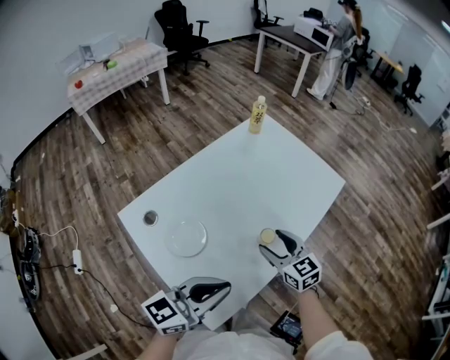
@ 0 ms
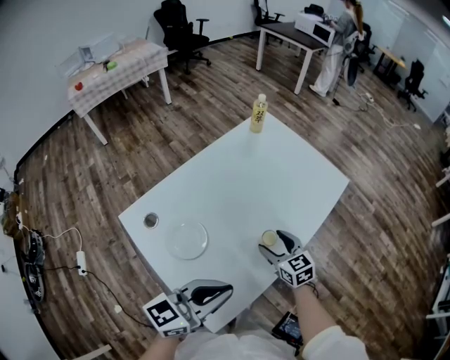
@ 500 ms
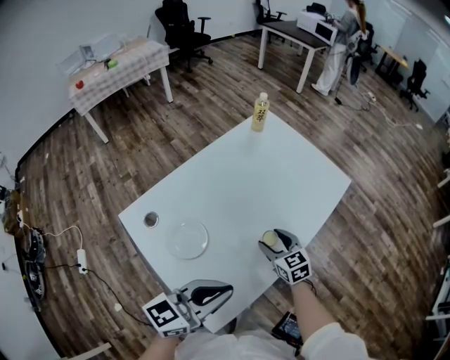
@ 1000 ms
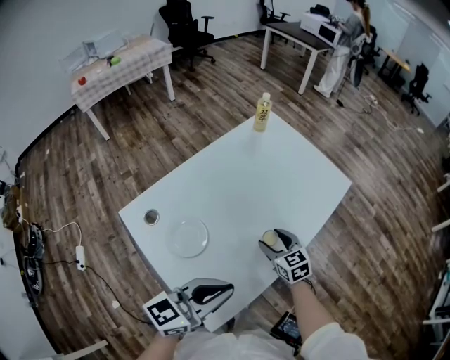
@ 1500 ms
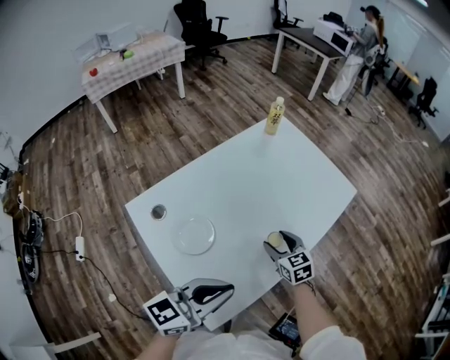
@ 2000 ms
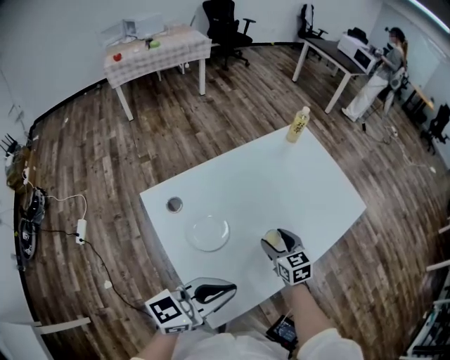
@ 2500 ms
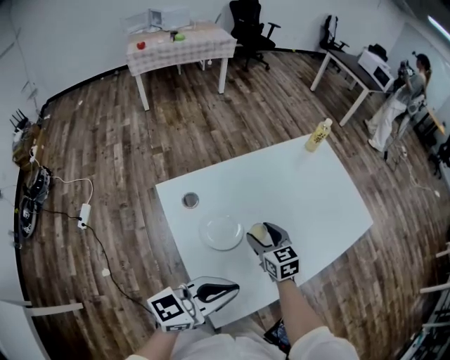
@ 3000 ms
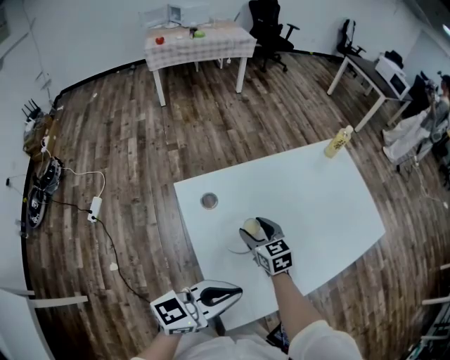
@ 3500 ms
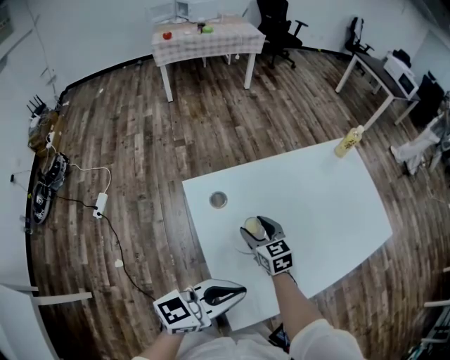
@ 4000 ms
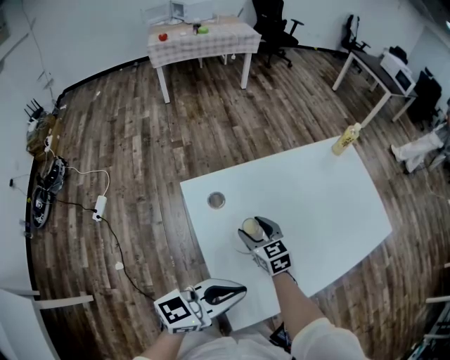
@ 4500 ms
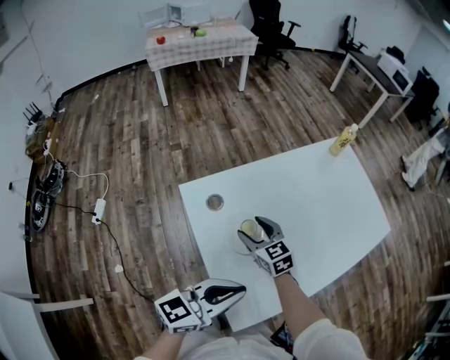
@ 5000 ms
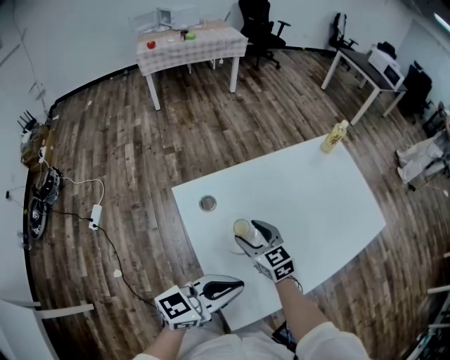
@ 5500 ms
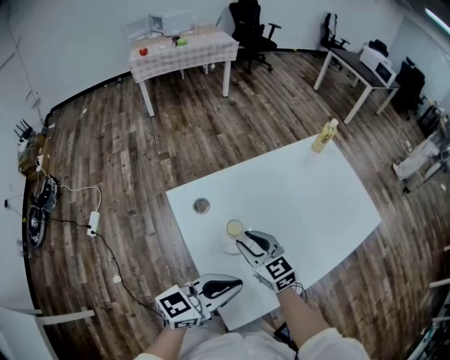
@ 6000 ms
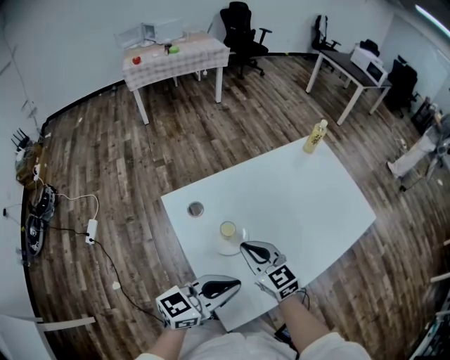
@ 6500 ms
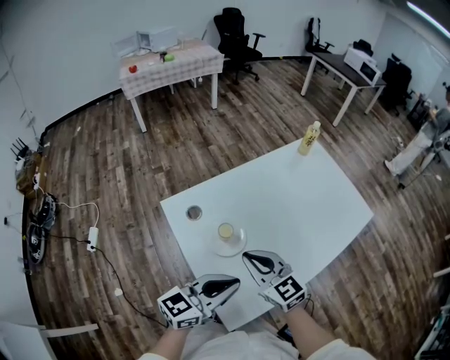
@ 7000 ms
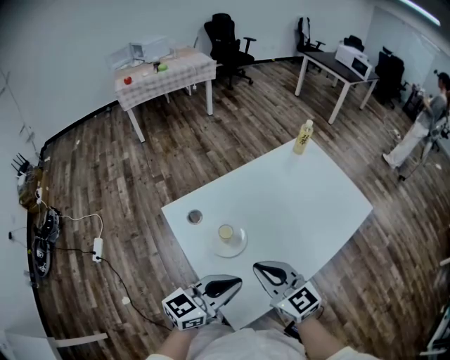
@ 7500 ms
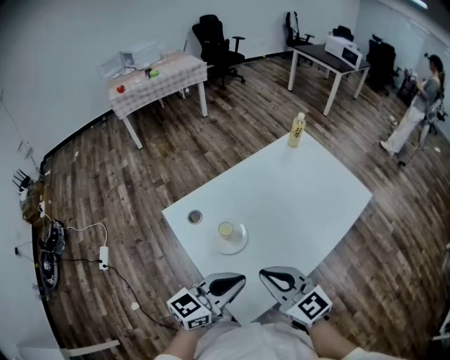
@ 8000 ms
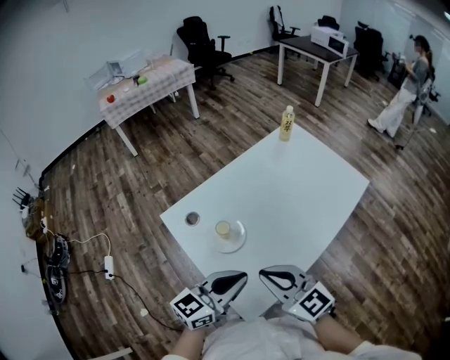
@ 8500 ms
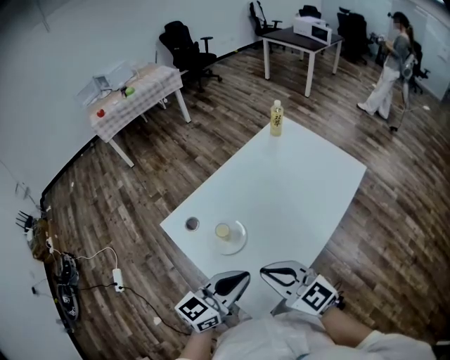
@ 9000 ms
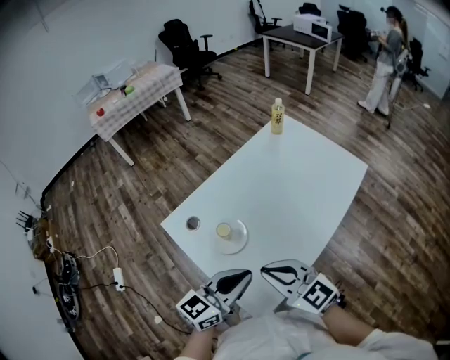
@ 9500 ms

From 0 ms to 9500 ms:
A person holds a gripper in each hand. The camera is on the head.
From 0 ms to 2000 ms: The right gripper moves downward, approximately 10 cm.
From 2000 ms to 4000 ms: The right gripper heads to the left, covering some 30 cm, and changes its angle by about 20 degrees, while the left gripper moves to the left, approximately 10 cm.
From 4000 ms to 5500 ms: The grippers make only small movements.
From 5500 ms to 7500 ms: The right gripper heads backward, upward and to the right, covering about 20 cm, and closes its fingers.
From 7500 ms to 9500 ms: The grippers move only a little.

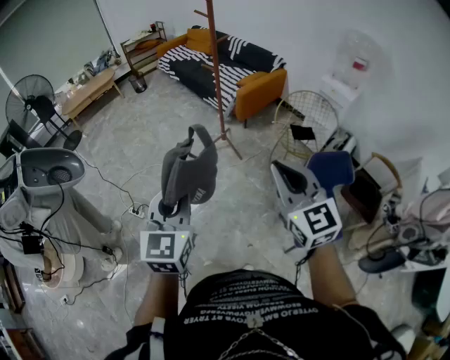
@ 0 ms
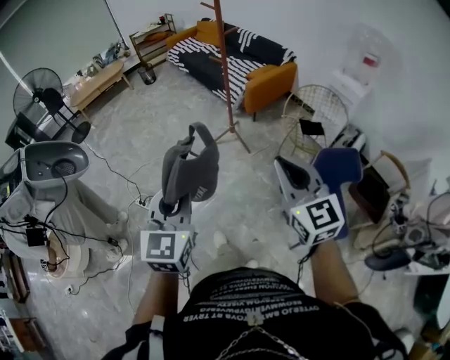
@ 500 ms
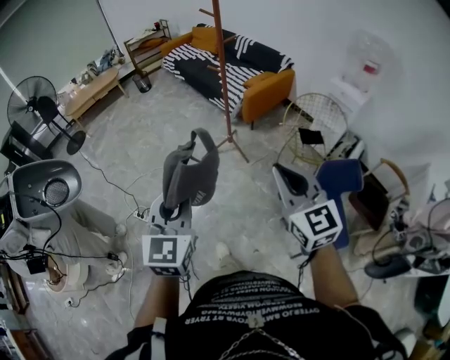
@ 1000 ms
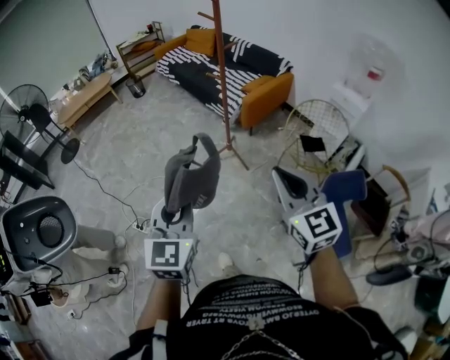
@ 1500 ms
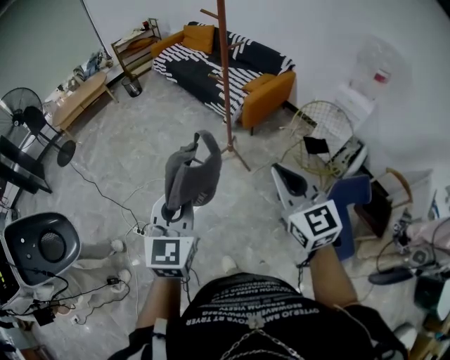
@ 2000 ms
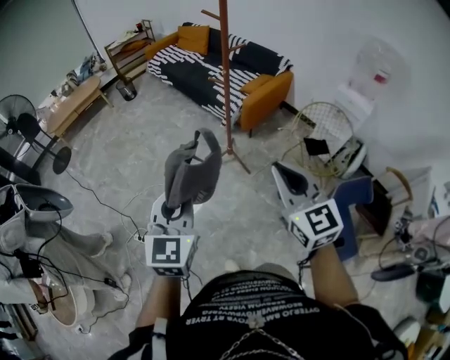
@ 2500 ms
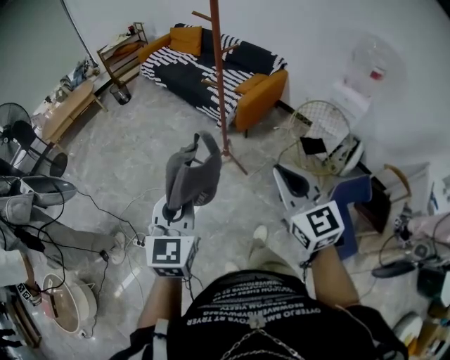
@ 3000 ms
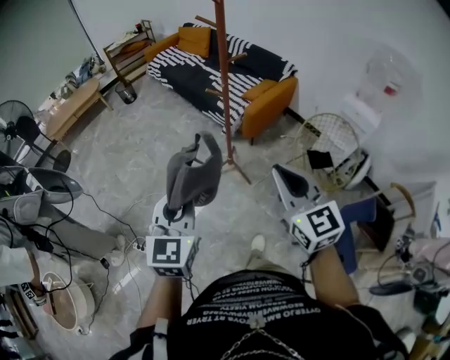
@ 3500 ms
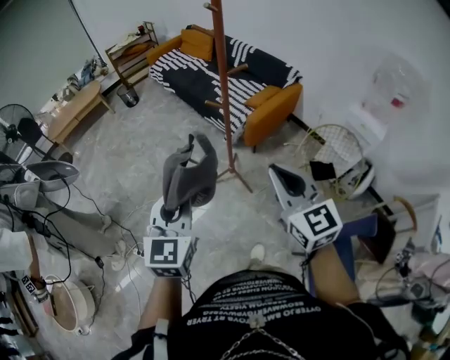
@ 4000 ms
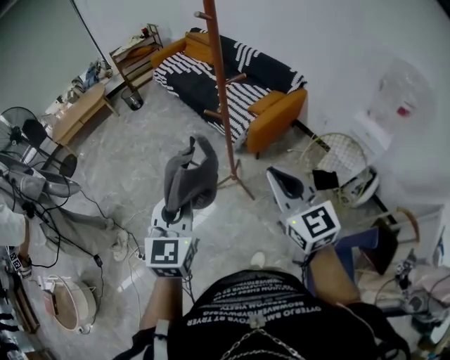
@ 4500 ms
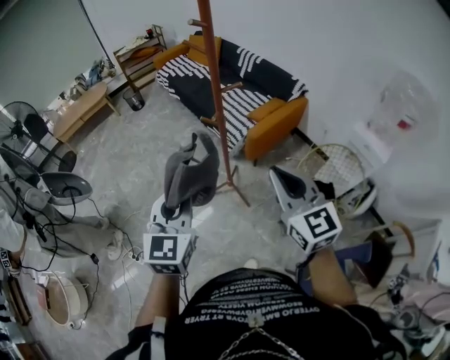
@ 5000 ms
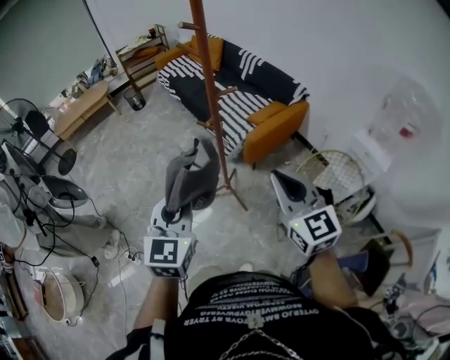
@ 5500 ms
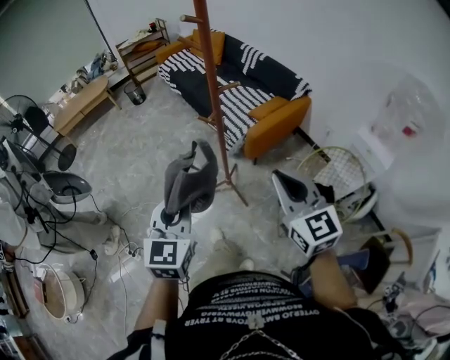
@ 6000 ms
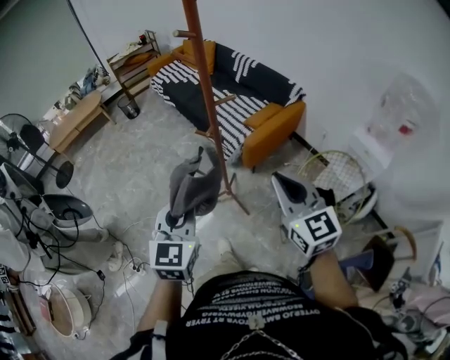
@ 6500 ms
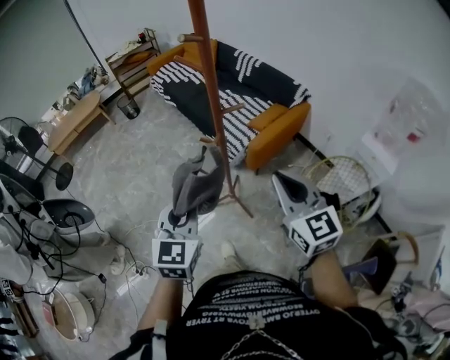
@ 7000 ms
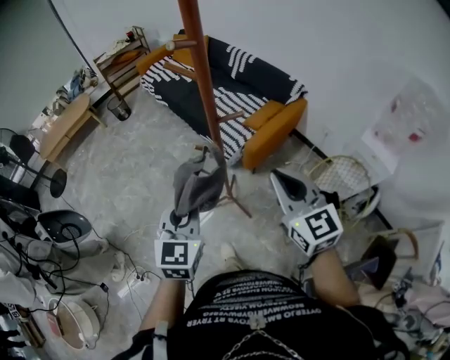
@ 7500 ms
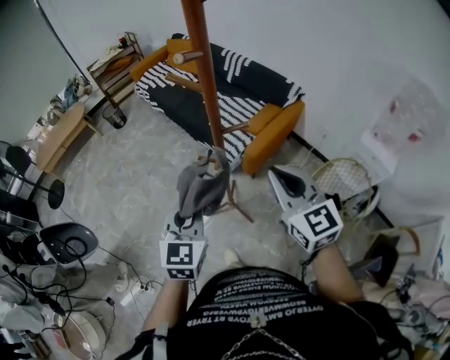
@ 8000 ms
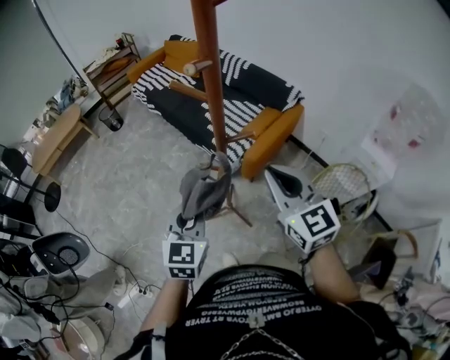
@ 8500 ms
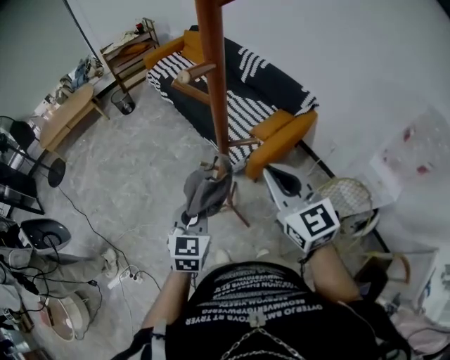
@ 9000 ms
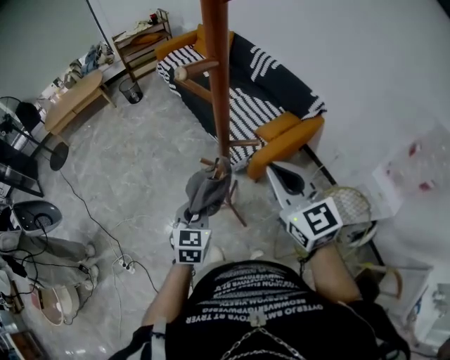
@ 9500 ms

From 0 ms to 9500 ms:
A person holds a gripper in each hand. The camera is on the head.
From 0 ms to 2000 ms: The two grippers go about 25 cm forward.
From 2000 ms to 4000 ms: Both grippers travel together forward, some 25 cm.
From 4000 ms to 5500 ms: The grippers both shift to the right and forward by approximately 15 cm.
From 5500 ms to 7500 ms: Both grippers travel together forward, roughly 15 cm.
From 7500 ms to 9500 ms: The right gripper heads forward, covering roughly 10 cm; the left gripper heads downward and forward, covering about 15 cm.

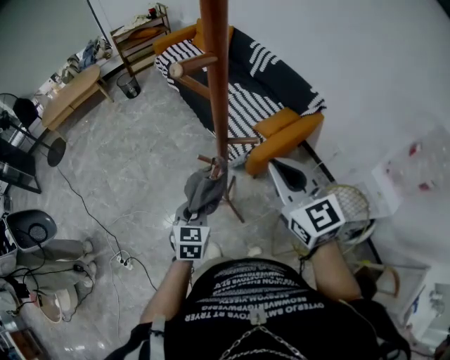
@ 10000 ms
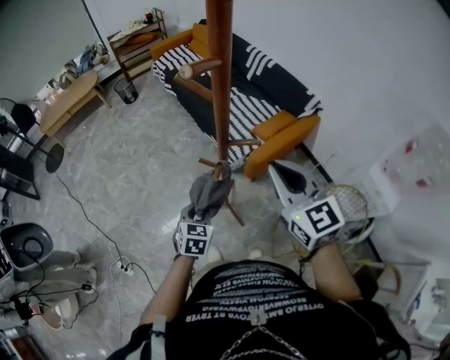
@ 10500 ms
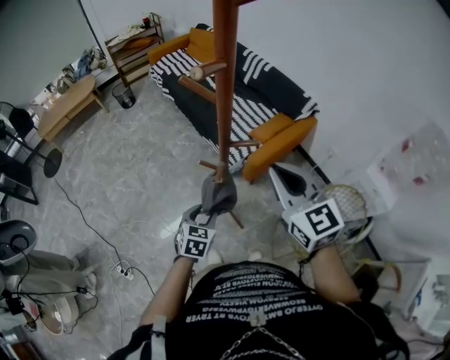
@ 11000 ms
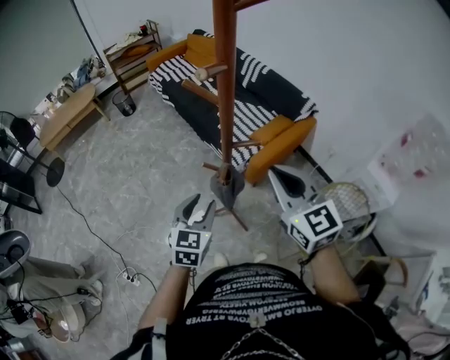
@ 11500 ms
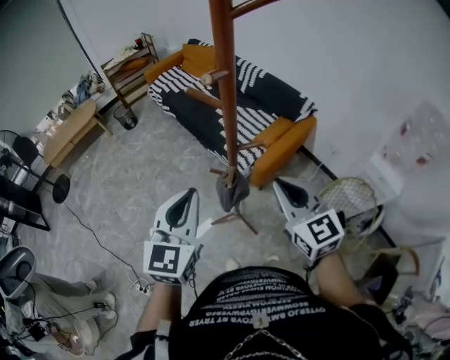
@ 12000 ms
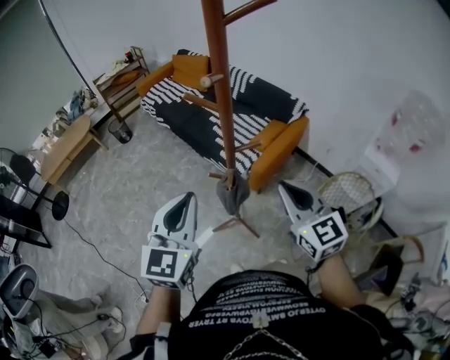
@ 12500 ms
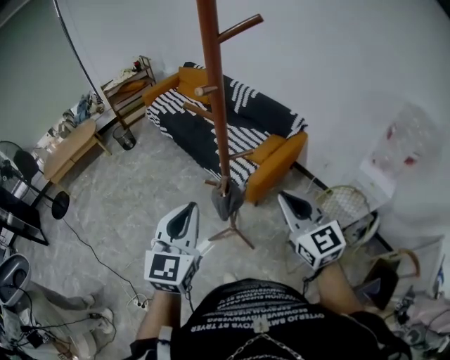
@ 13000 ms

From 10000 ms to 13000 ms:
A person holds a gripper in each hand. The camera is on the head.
From 10000 ms to 11500 ms: The left gripper is displaced upward by roughly 10 cm, and opens.
From 11500 ms to 13000 ms: The left gripper travels upward by roughly 20 cm, and closes up; the right gripper travels backward by about 5 cm.

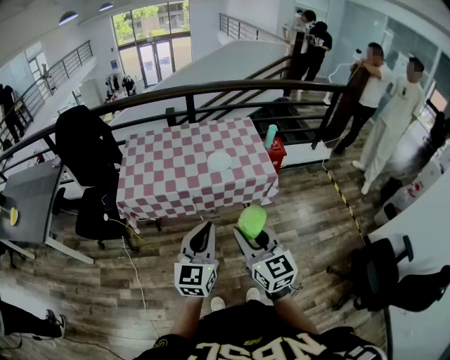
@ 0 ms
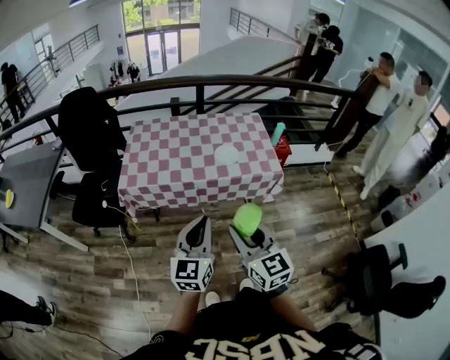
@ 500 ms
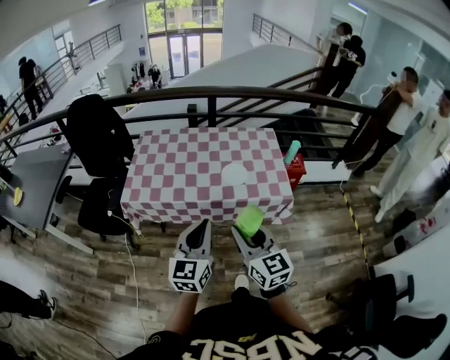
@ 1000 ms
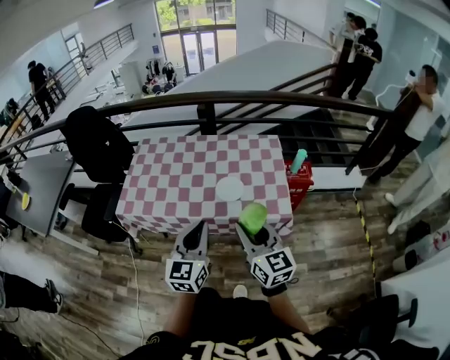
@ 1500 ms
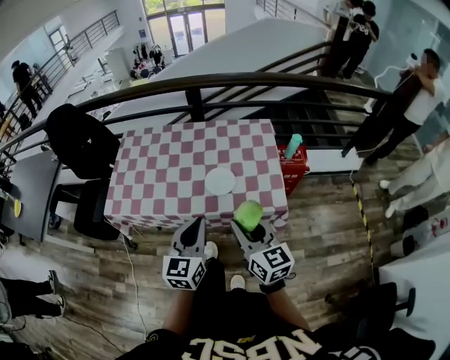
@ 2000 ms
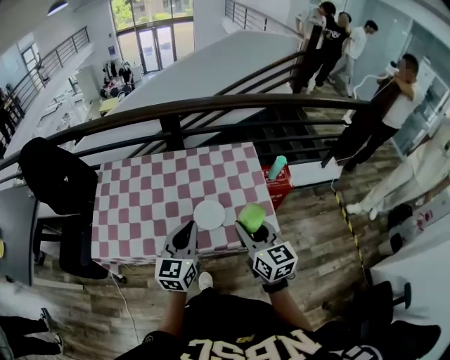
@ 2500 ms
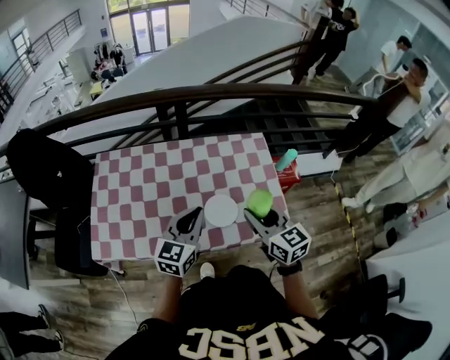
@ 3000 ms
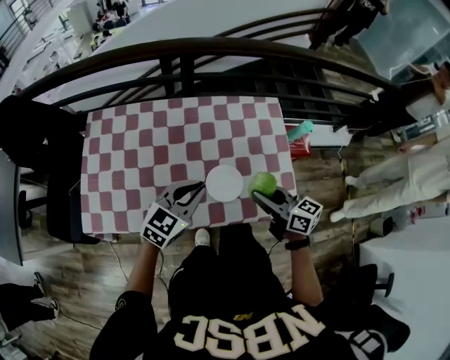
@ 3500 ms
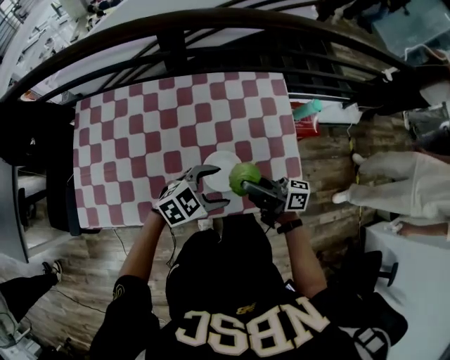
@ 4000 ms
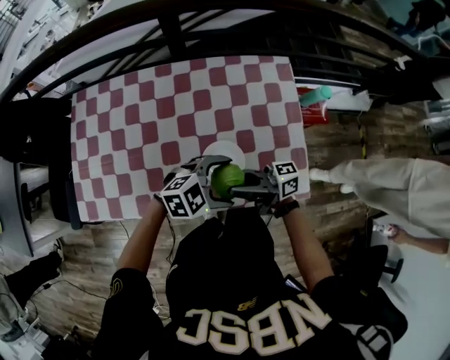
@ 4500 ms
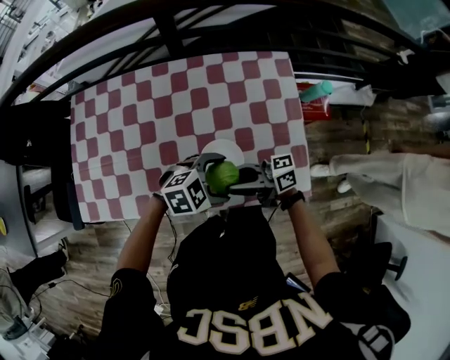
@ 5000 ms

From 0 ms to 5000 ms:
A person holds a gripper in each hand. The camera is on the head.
From 0 ms to 2500 ms: Both grippers are carried forward, about 40 cm.
From 2500 ms to 5000 ms: The two grippers go about 20 cm downward. The left gripper tilts its fingers some 40 degrees downward, and opens. The right gripper changes its angle by some 80 degrees.
